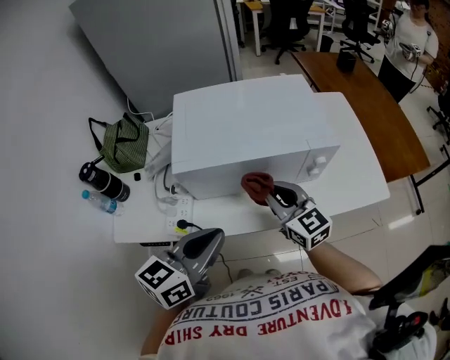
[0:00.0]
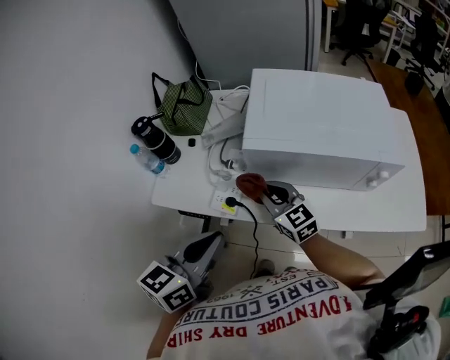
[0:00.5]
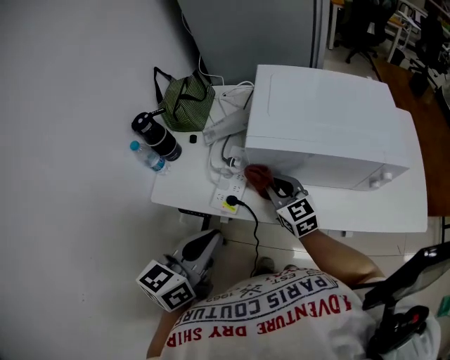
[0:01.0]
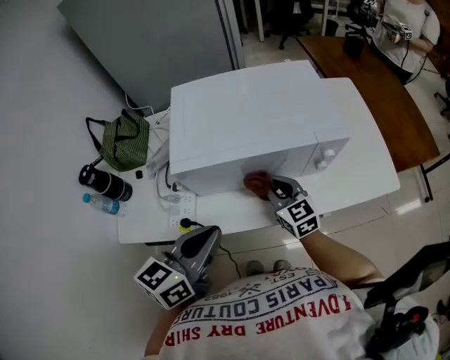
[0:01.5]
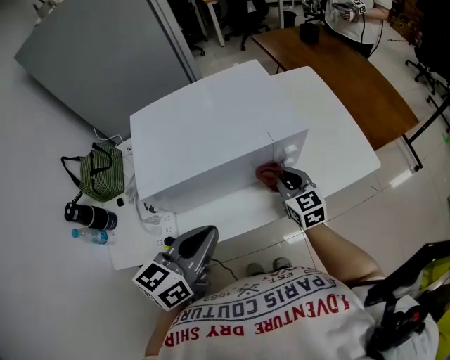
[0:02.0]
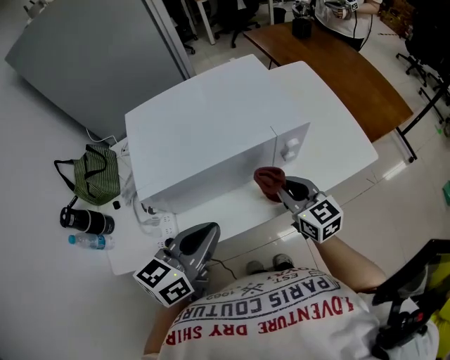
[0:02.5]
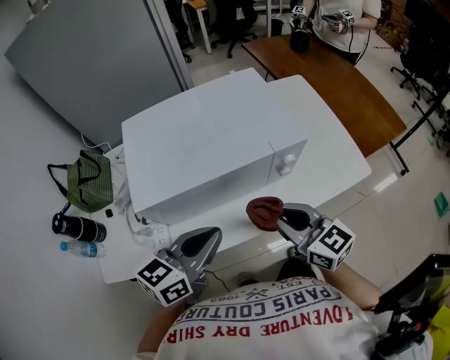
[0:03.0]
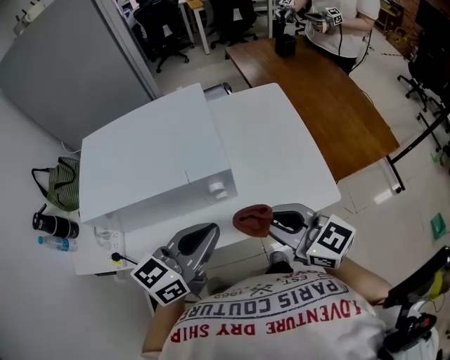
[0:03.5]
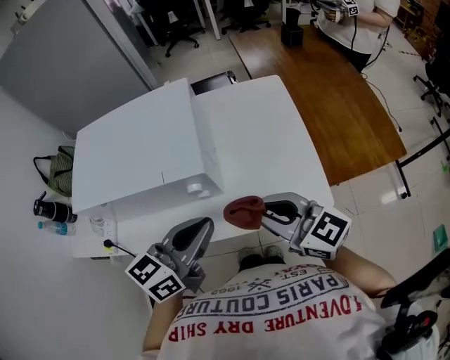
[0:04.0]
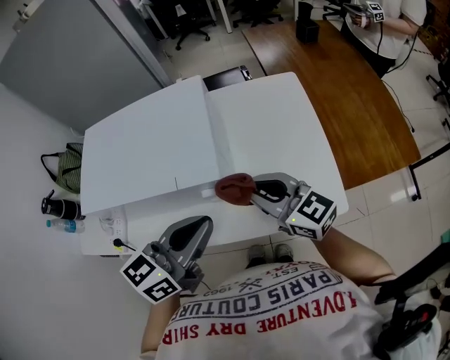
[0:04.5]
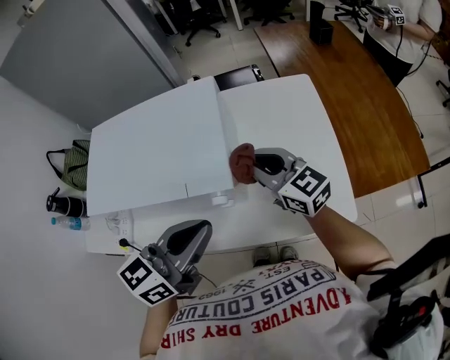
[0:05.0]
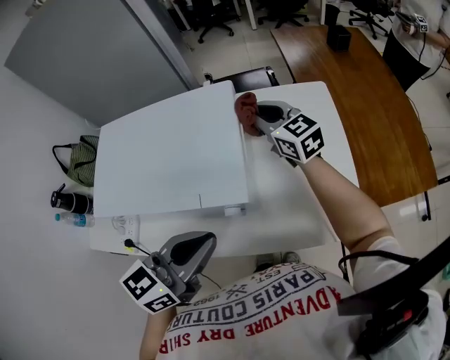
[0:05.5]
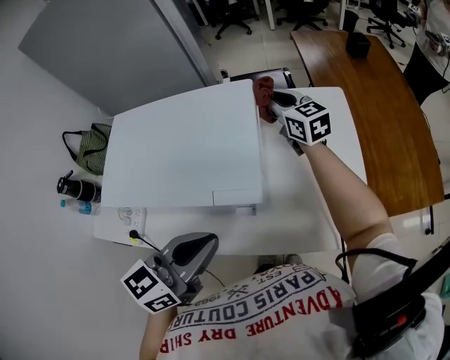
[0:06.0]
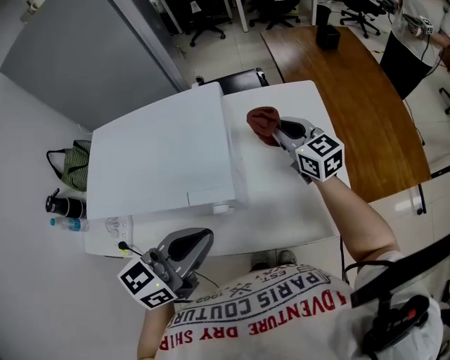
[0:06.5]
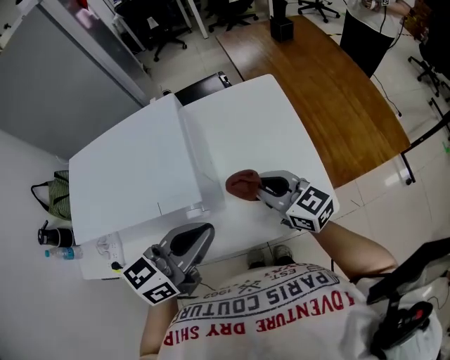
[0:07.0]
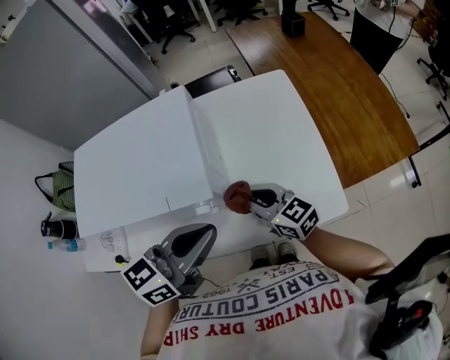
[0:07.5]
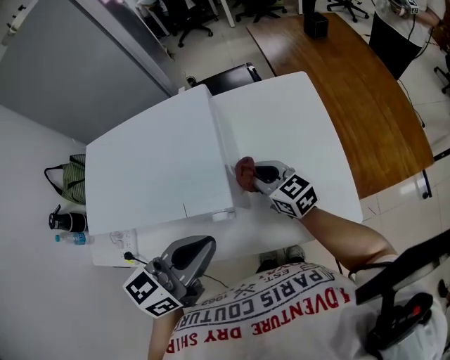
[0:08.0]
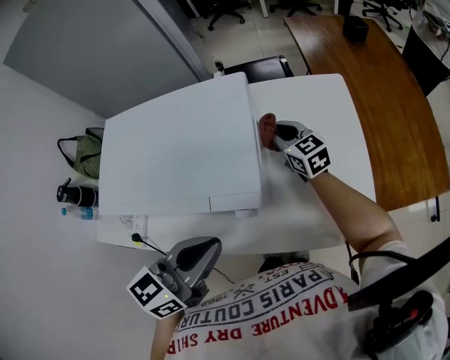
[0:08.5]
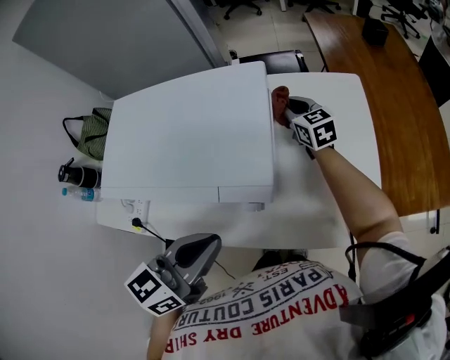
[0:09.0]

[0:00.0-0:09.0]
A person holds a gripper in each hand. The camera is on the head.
0:00.0 to 0:02.0: The right gripper moves about 15 cm, and swivels approximately 20 degrees.
0:02.0 to 0:04.5: The right gripper moves left and right over some 25 cm, changing direction 2 times, and turns by roughly 40 degrees. Meanwhile the left gripper travels to the right by some 25 cm.
0:04.5 to 0:07.0: The right gripper moves to the right, roughly 5 cm, and moves roughly 30 cm forward and comes back.
0:07.0 to 0:09.0: The left gripper shifts some 10 cm to the left, and changes its angle by roughly 20 degrees. The right gripper travels forward by approximately 25 cm.

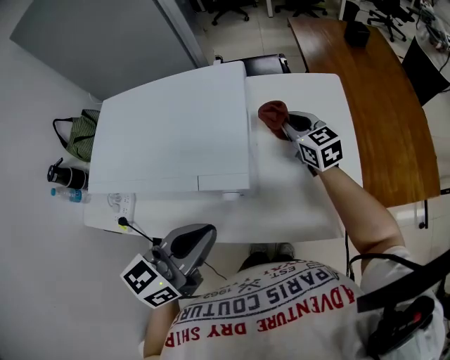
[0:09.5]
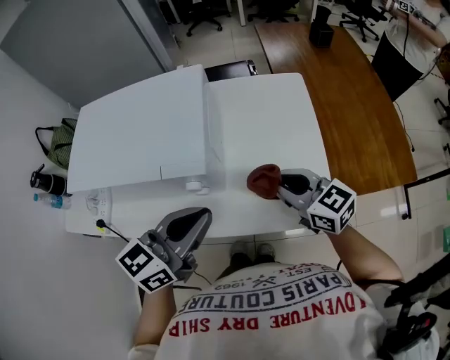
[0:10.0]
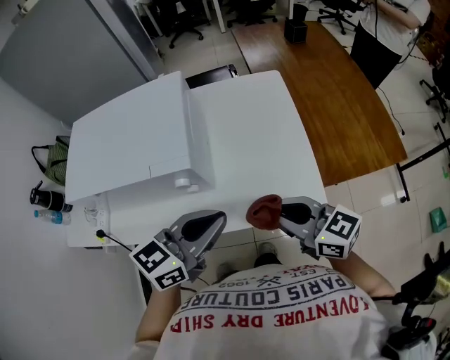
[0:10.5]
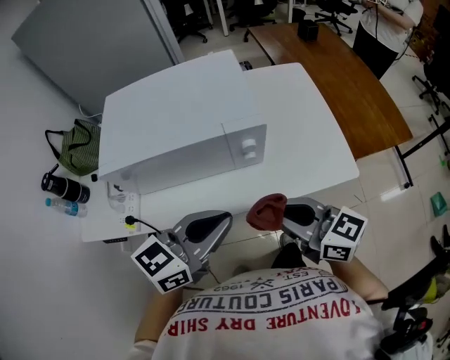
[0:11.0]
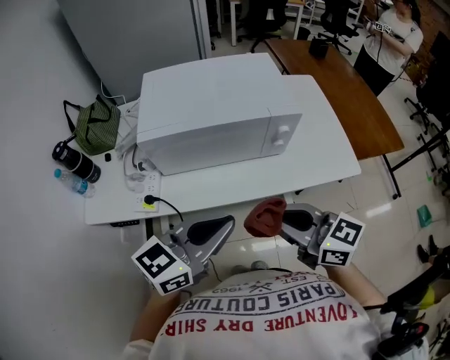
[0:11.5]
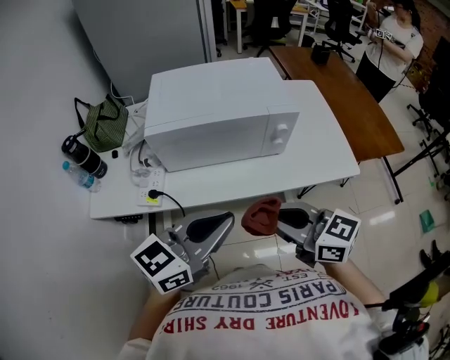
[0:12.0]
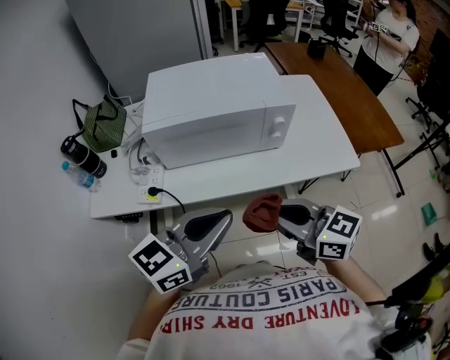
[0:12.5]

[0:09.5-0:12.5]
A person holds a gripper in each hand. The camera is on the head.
0:09.5 to 0:11.0: The right gripper shifts roughly 40 cm backward, and rotates approximately 20 degrees; the left gripper travels backward by some 10 cm, moves some 10 cm to the right and comes back, and turns by some 20 degrees.
0:11.0 to 0:12.5: The two grippers go some 15 cm to the left and backward.

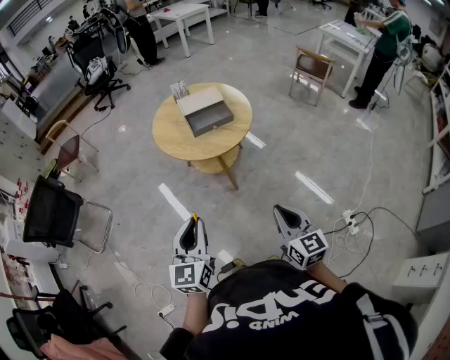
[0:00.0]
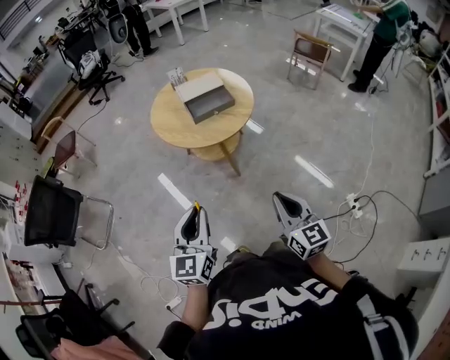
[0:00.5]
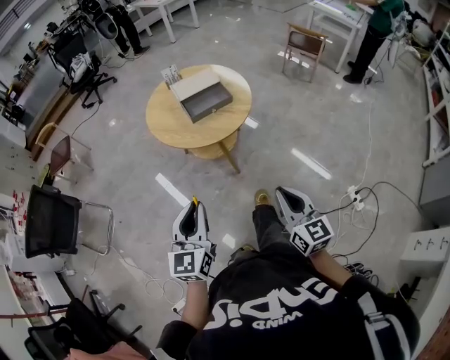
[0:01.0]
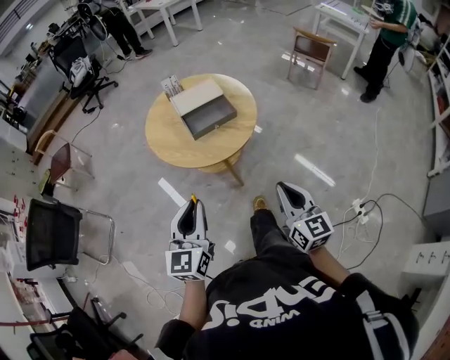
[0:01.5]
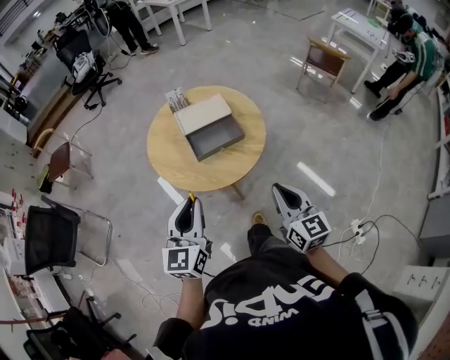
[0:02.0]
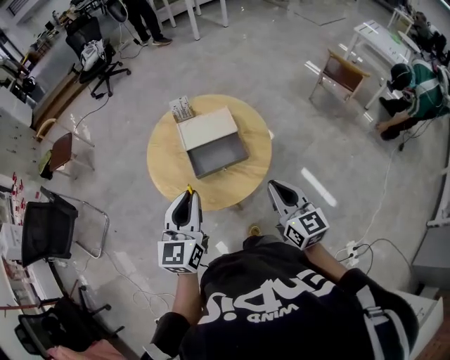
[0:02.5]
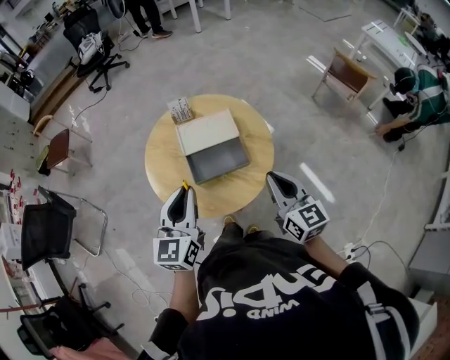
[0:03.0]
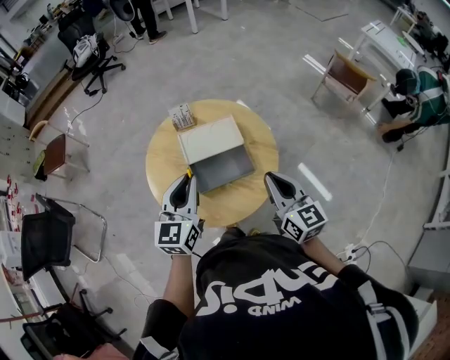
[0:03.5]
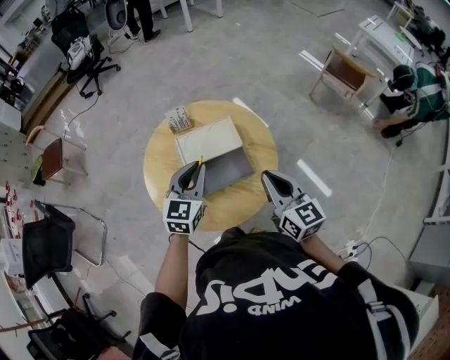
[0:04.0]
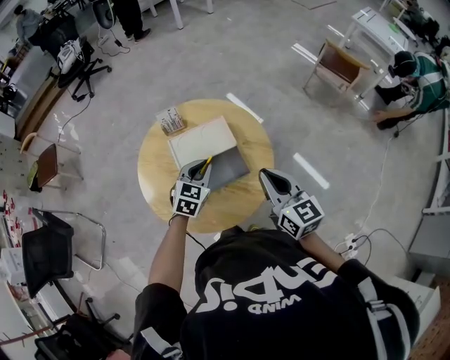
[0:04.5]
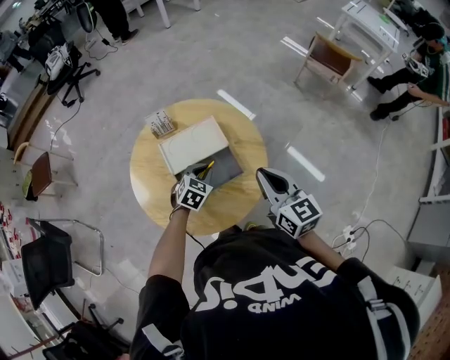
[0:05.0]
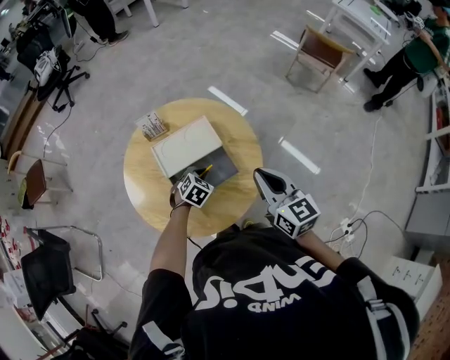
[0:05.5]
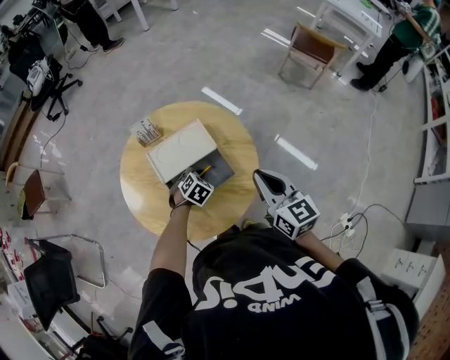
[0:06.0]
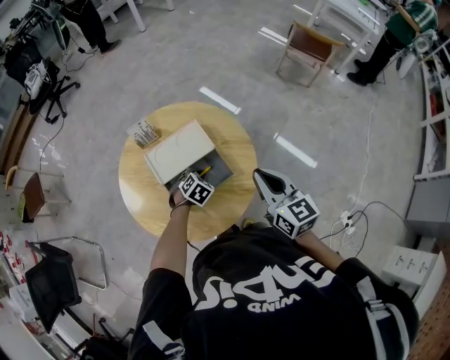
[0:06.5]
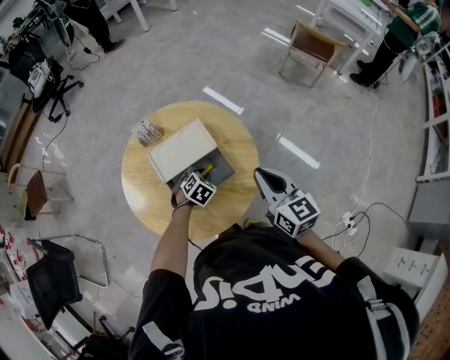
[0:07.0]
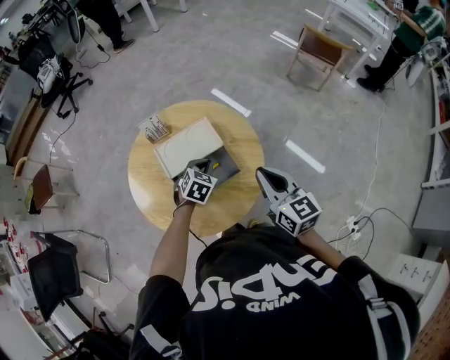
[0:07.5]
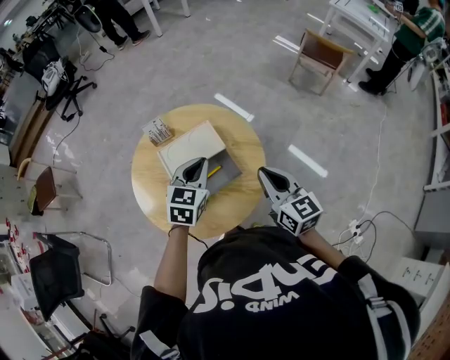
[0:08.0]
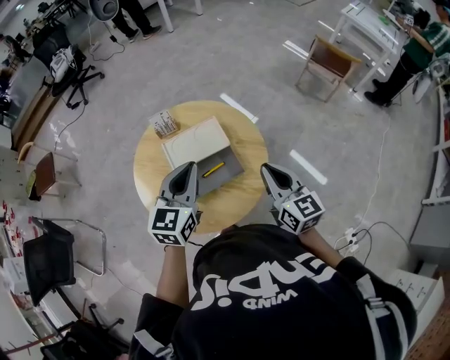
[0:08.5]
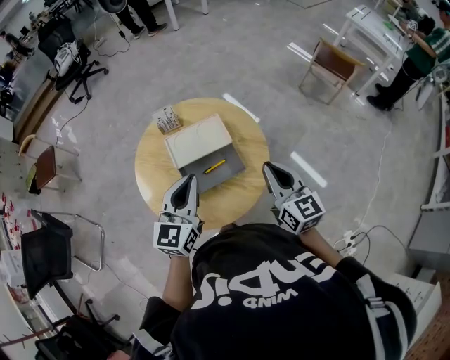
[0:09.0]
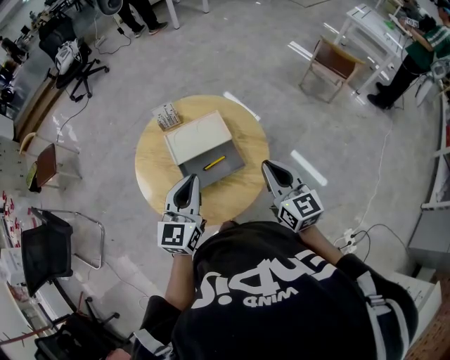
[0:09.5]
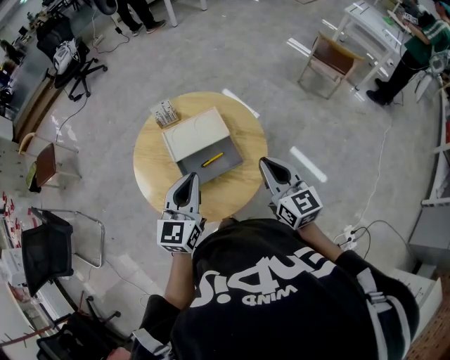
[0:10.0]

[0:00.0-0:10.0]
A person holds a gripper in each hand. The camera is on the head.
0:00.0 to 0:02.0: Both grippers travel together forward, some 30 cm.
0:02.0 to 0:04.0: Both grippers travel together forward, about 30 cm.
0:04.0 to 0:06.0: The left gripper is displaced downward by approximately 25 cm, and tilts its fingers about 50 degrees downward. The right gripper ends up roughly 5 cm from where it was.
0:06.0 to 0:08.0: The left gripper shifts roughly 25 cm upward, and points its fingers roughly 30 degrees further upward.
0:08.0 to 0:10.0: The left gripper heads backward, covering roughly 10 cm, and swivels about 20 degrees.

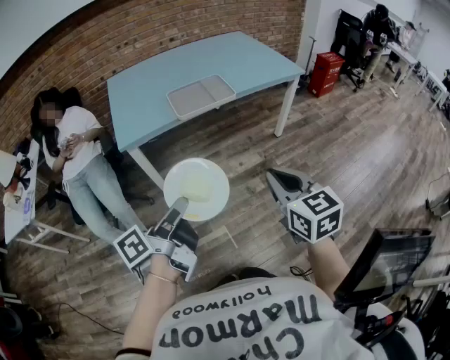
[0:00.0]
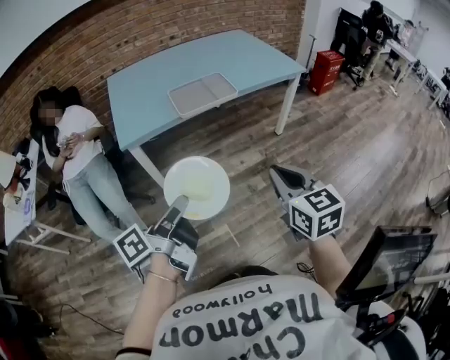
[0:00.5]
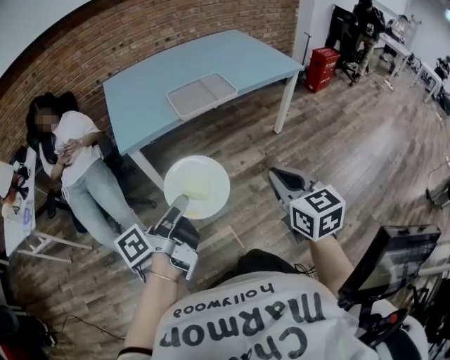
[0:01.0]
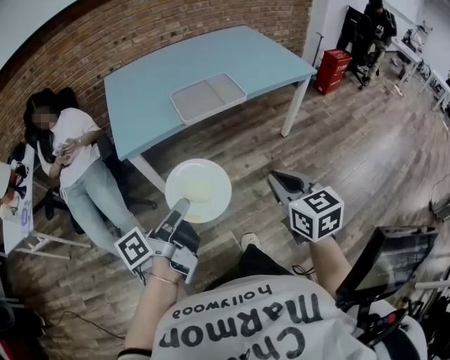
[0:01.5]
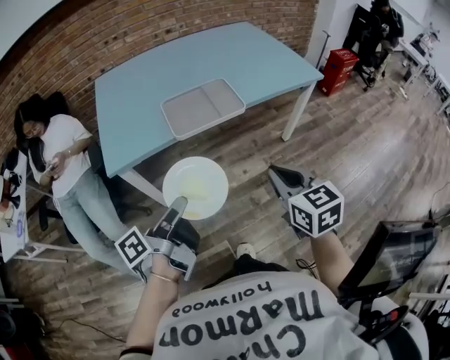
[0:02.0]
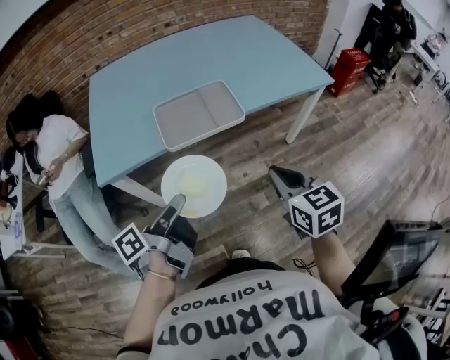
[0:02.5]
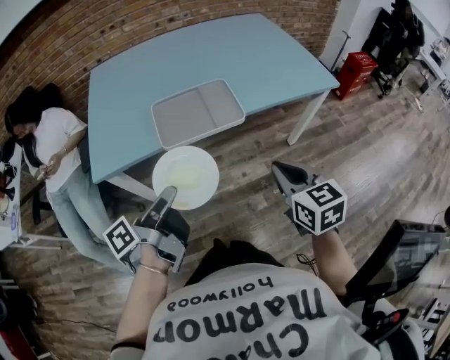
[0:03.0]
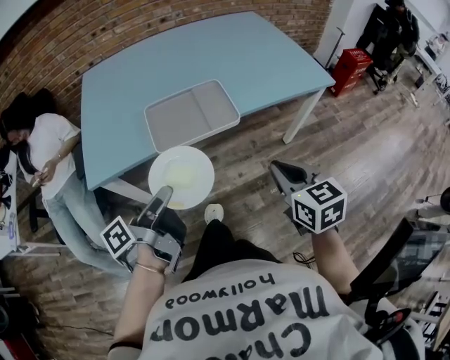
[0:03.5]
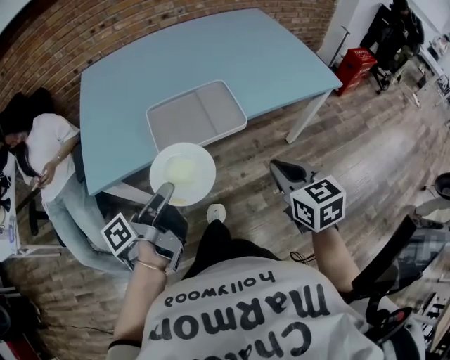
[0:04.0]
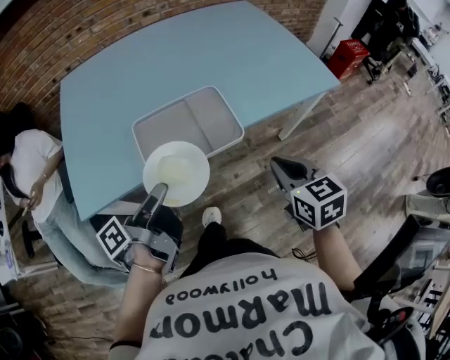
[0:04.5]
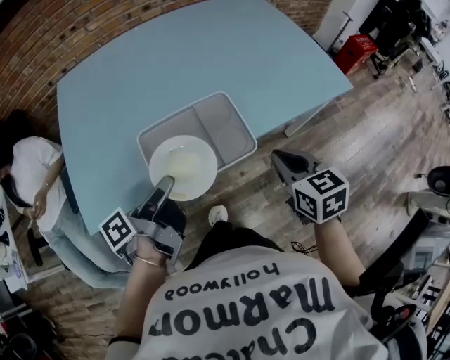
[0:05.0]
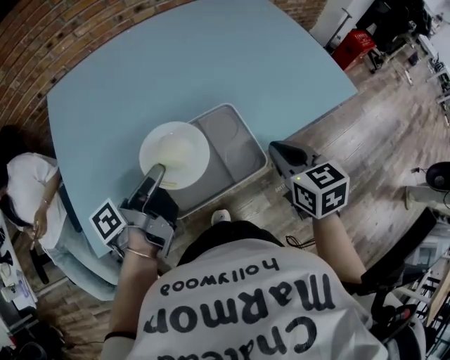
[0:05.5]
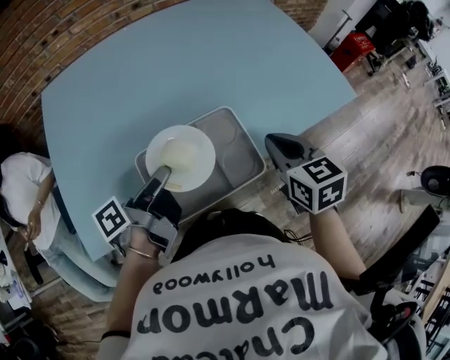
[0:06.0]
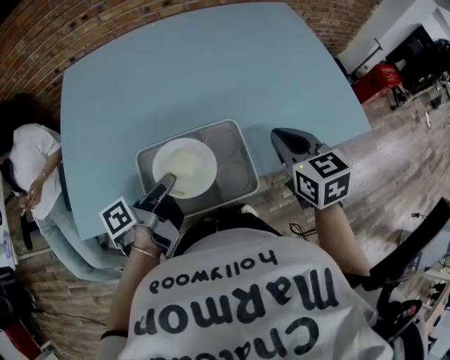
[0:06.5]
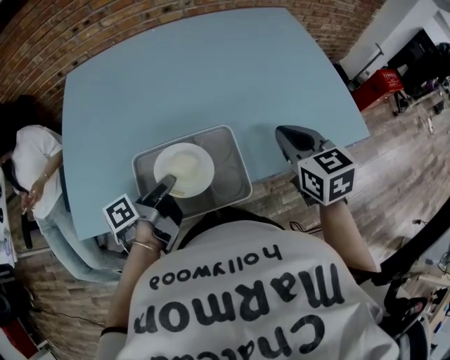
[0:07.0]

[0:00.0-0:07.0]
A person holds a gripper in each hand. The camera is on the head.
0:00.0 to 0:02.0: The right gripper shifts by about 20 cm.
0:02.0 to 0:03.5: The right gripper ends up some 15 cm from where it was.
0:03.5 to 0:05.0: The right gripper ends up about 20 cm from where it was.
0:05.0 to 0:07.0: The right gripper ends up roughly 20 cm from where it was.
